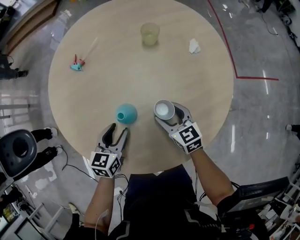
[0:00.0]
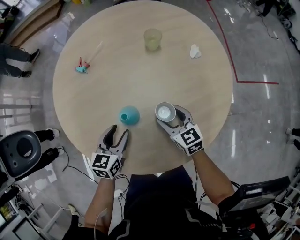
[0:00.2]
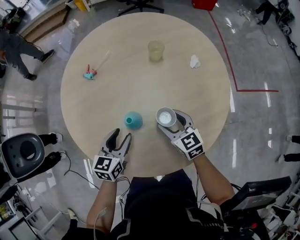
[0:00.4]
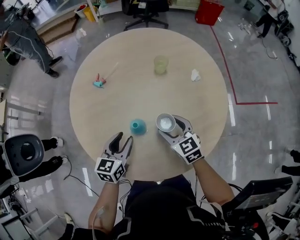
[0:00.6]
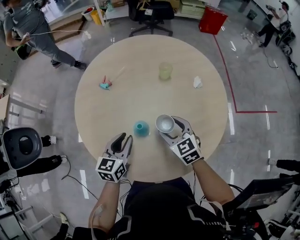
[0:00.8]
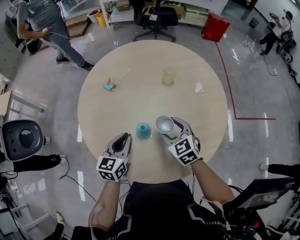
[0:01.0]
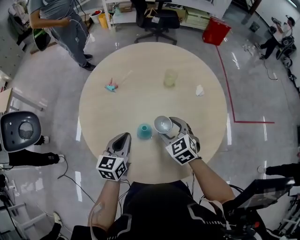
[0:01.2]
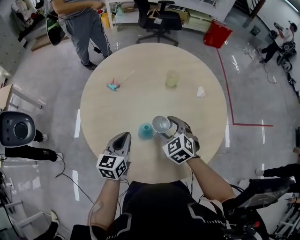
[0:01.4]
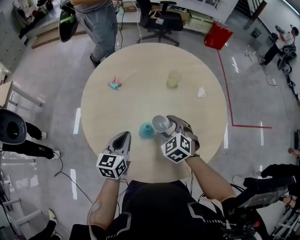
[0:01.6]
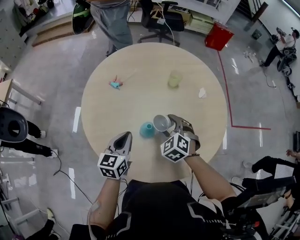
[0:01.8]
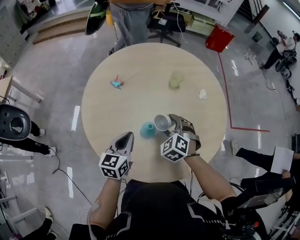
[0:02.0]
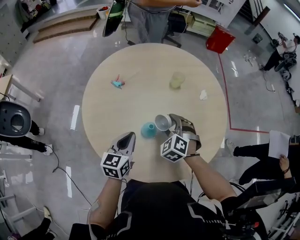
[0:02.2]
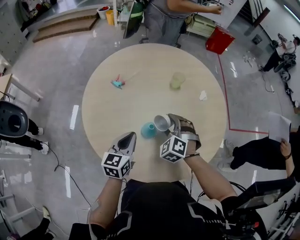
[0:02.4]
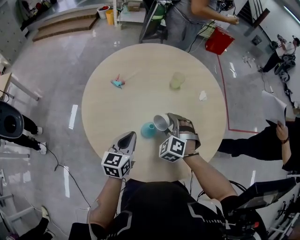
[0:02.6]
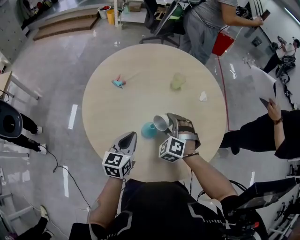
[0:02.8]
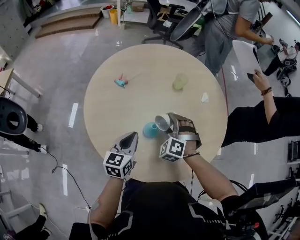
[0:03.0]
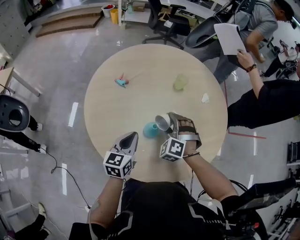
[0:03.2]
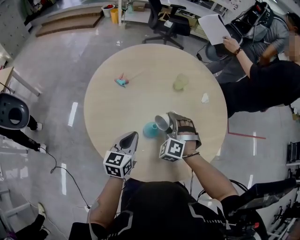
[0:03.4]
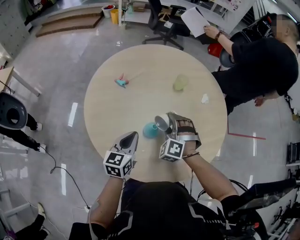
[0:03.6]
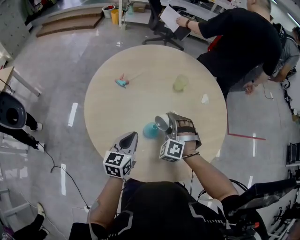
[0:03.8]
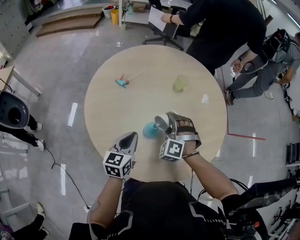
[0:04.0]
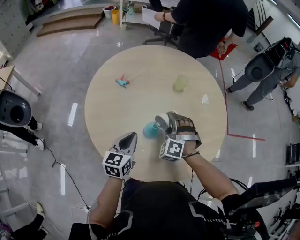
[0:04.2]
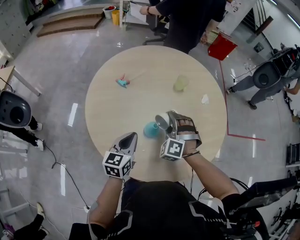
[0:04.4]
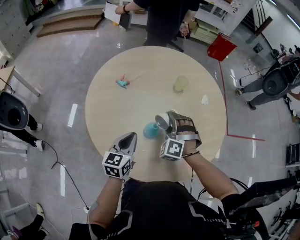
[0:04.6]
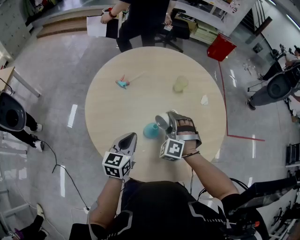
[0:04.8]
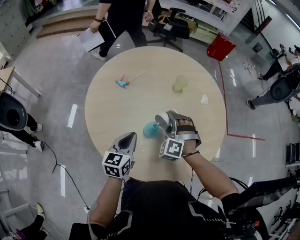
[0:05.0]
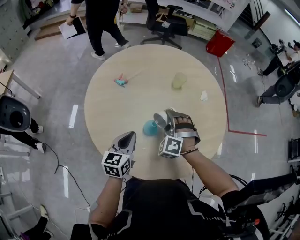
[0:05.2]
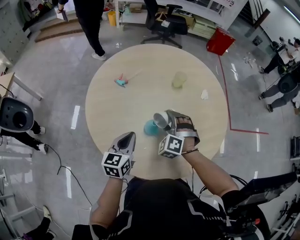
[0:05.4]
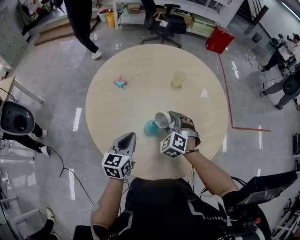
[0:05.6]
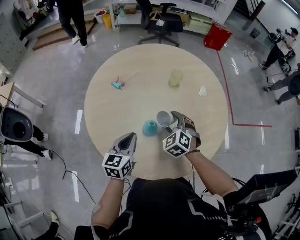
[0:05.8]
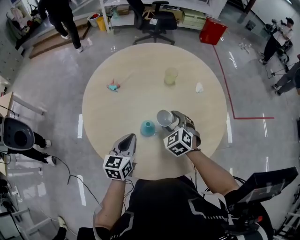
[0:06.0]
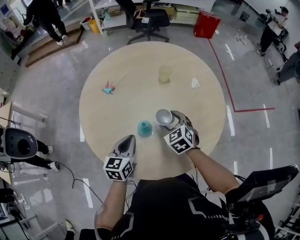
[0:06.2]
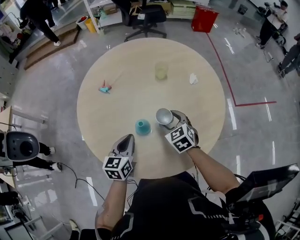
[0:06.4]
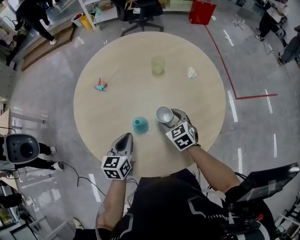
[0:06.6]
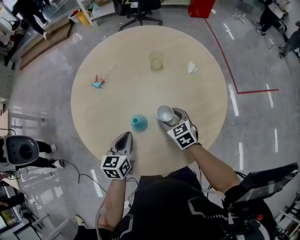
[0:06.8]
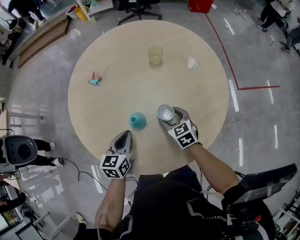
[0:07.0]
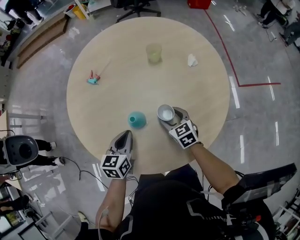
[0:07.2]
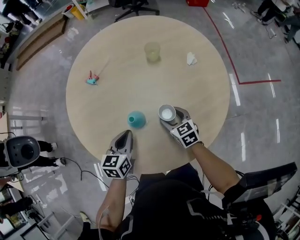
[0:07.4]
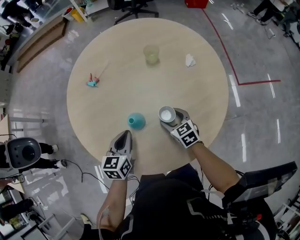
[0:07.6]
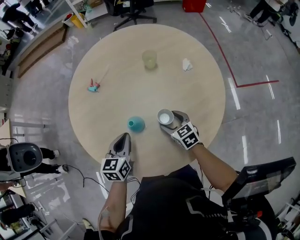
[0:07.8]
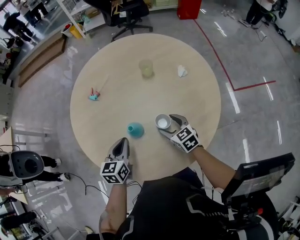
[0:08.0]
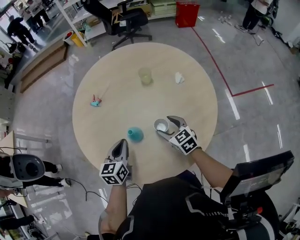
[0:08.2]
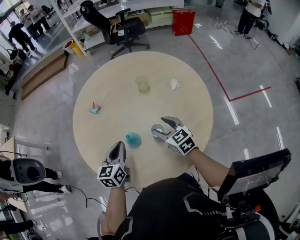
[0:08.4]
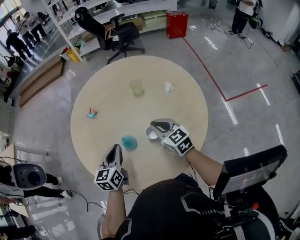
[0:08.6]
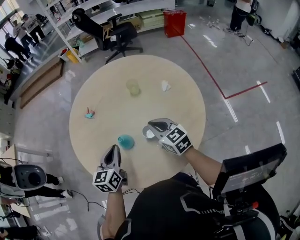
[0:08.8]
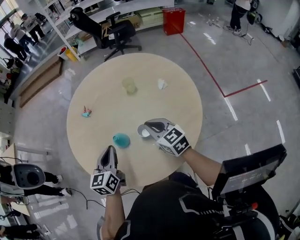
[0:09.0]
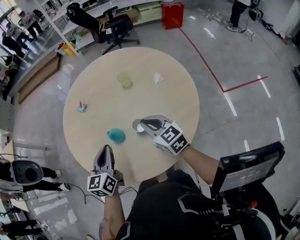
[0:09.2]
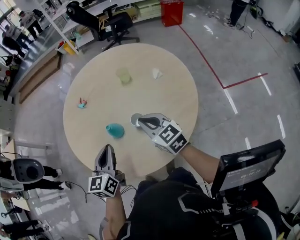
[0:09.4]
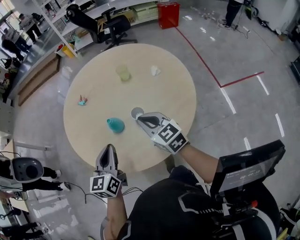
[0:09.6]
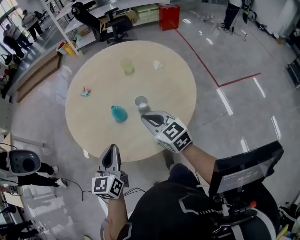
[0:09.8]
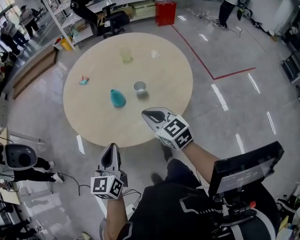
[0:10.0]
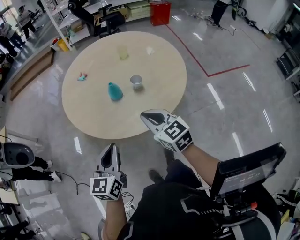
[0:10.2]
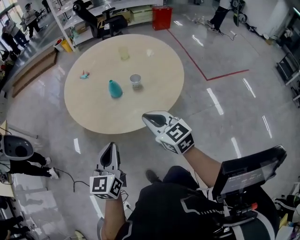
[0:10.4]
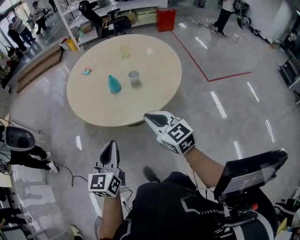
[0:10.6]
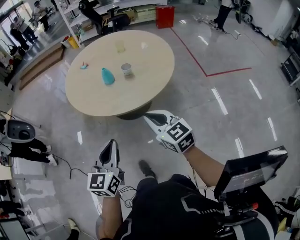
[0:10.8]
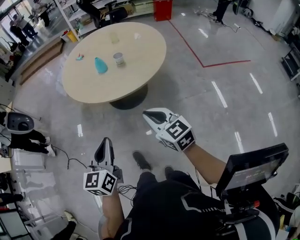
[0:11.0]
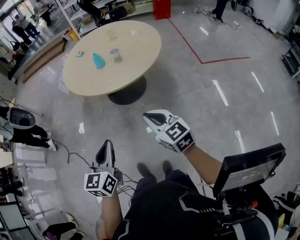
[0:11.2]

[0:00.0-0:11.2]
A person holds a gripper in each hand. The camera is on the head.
0:00.0 to 0:01.6: The grippers both shift upward and to the left by about 10 cm. The right gripper turns by approximately 40 degrees, while the left gripper closes.
0:01.6 to 0:03.2: The right gripper turns by about 30 degrees.
0:03.2 to 0:04.8: There are only small adjustments of the grippers.
0:04.8 to 0:06.4: The right gripper heads to the right, covering approximately 5 cm, and twists some 60 degrees clockwise, seen from behind.
0:08.0 to 0:09.6: The two grippers go some 15 cm upward and backward. The right gripper closes up.
0:09.6 to 0:11.2: Both grippers are carried backward, some 50 cm.

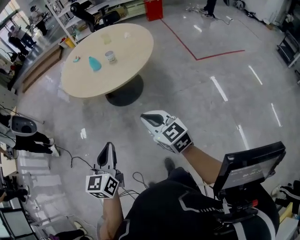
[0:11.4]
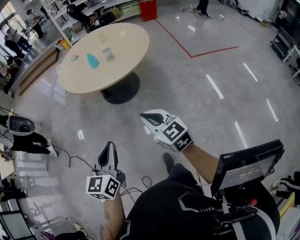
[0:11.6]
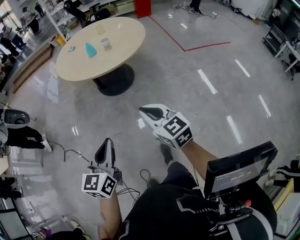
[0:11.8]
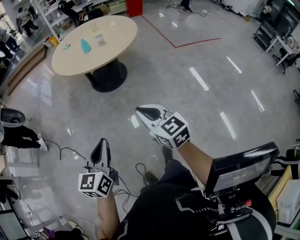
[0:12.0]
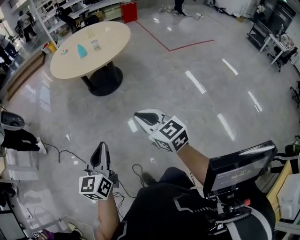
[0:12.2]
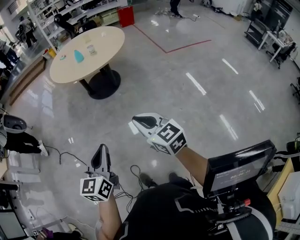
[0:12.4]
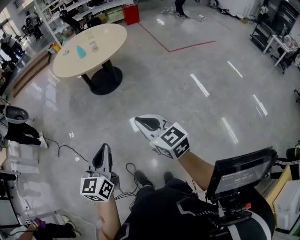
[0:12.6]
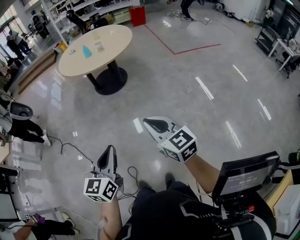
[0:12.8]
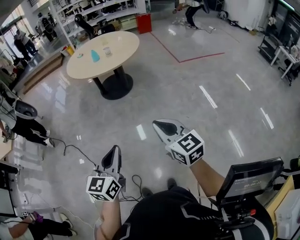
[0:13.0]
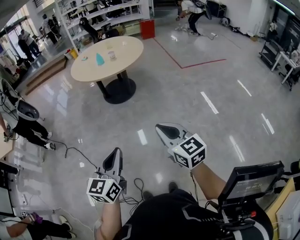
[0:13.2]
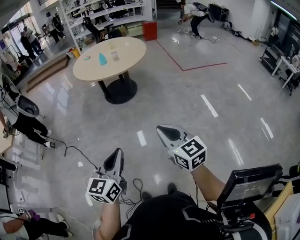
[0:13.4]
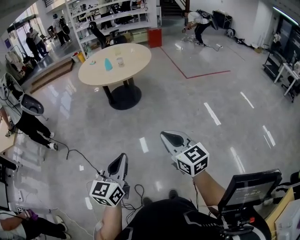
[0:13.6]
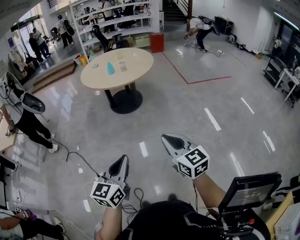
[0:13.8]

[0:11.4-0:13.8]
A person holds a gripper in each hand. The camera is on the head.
0:11.4 to 0:12.6: Both grippers move backward, roughly 35 cm.
0:12.6 to 0:13.8: The two grippers go approximately 5 cm backward.

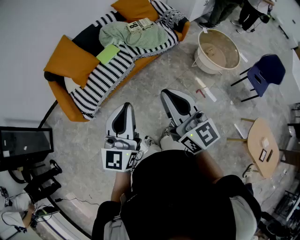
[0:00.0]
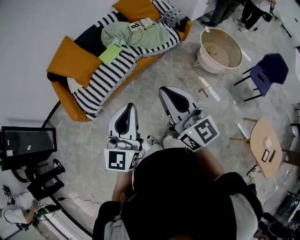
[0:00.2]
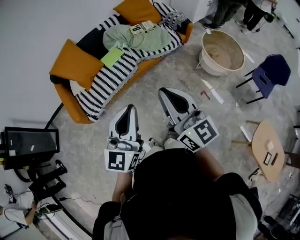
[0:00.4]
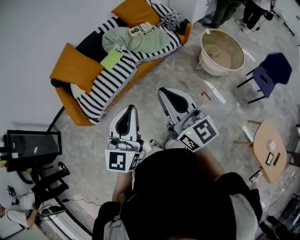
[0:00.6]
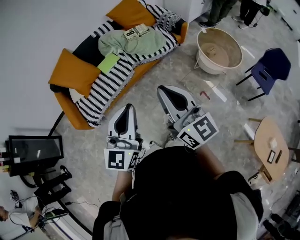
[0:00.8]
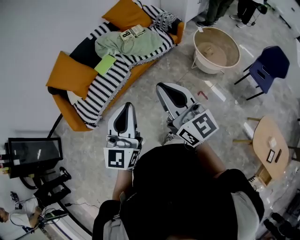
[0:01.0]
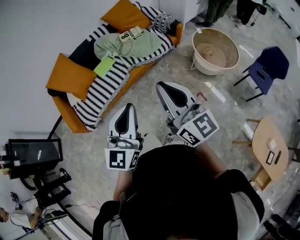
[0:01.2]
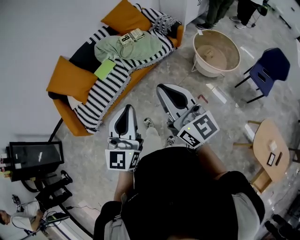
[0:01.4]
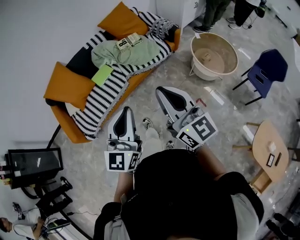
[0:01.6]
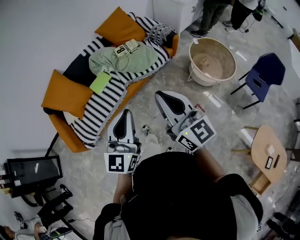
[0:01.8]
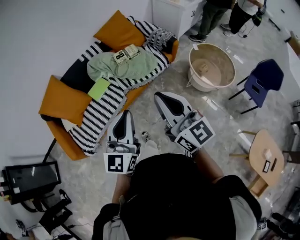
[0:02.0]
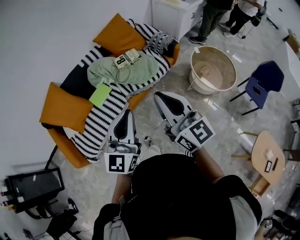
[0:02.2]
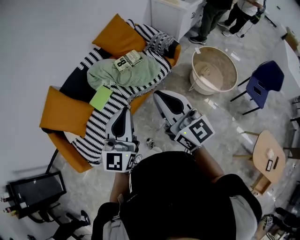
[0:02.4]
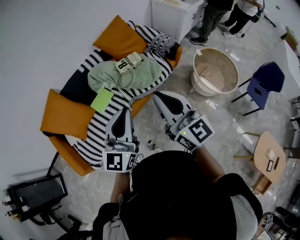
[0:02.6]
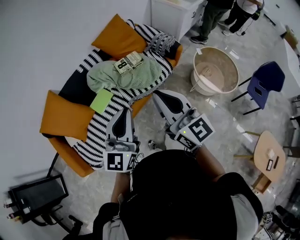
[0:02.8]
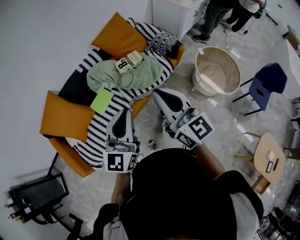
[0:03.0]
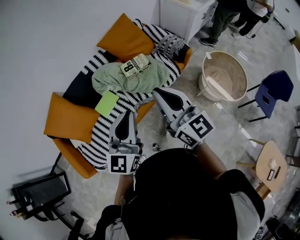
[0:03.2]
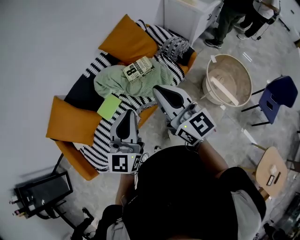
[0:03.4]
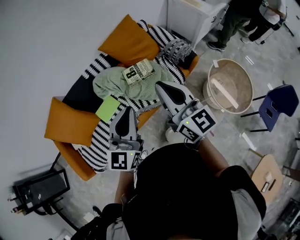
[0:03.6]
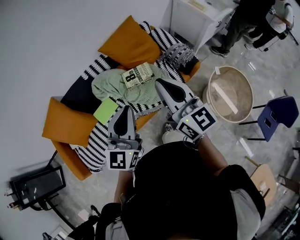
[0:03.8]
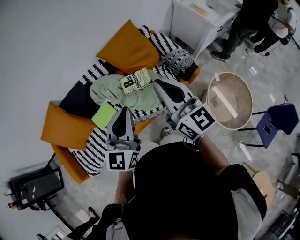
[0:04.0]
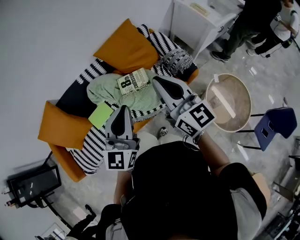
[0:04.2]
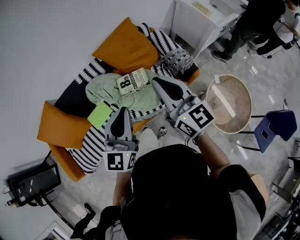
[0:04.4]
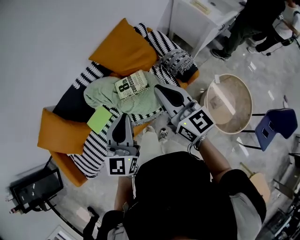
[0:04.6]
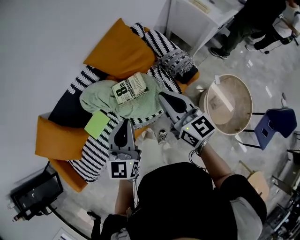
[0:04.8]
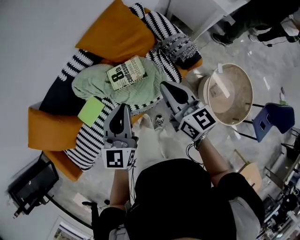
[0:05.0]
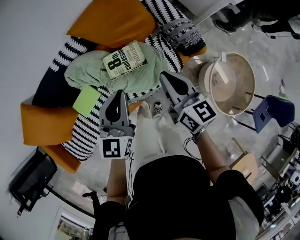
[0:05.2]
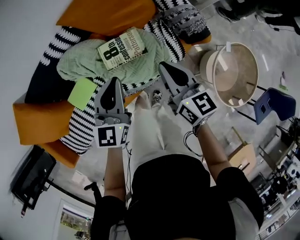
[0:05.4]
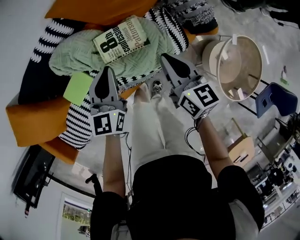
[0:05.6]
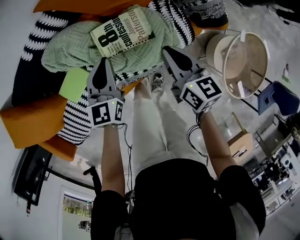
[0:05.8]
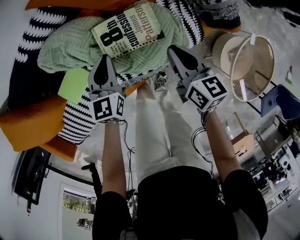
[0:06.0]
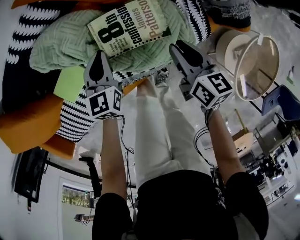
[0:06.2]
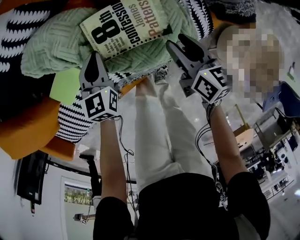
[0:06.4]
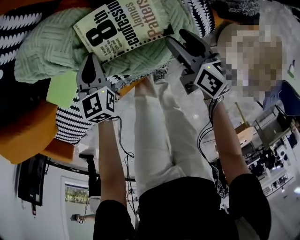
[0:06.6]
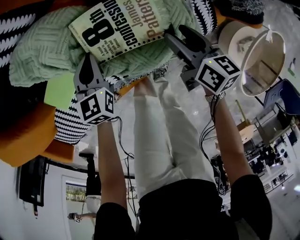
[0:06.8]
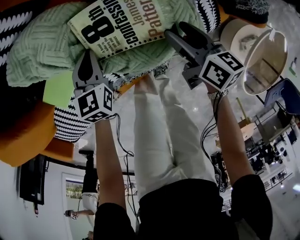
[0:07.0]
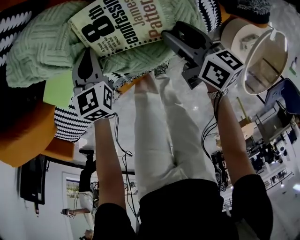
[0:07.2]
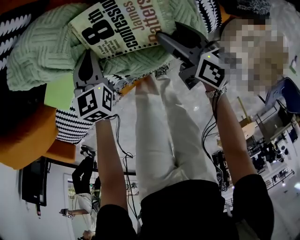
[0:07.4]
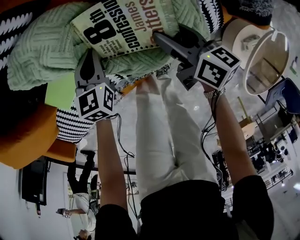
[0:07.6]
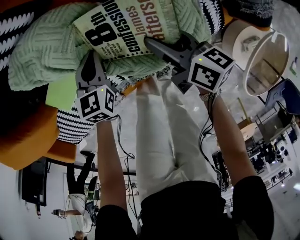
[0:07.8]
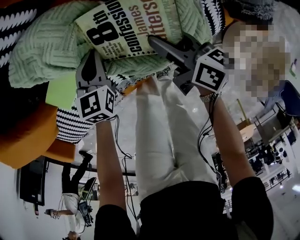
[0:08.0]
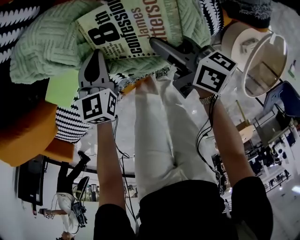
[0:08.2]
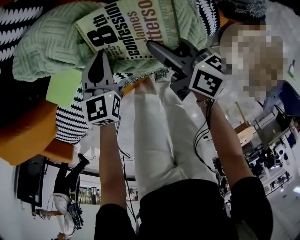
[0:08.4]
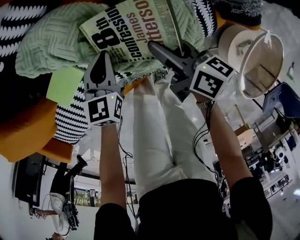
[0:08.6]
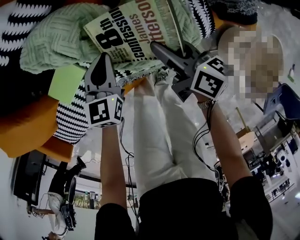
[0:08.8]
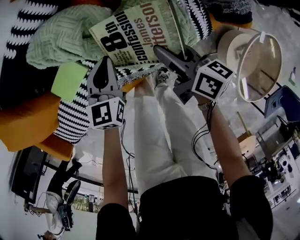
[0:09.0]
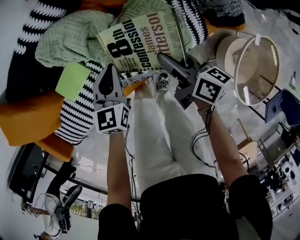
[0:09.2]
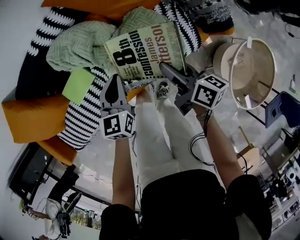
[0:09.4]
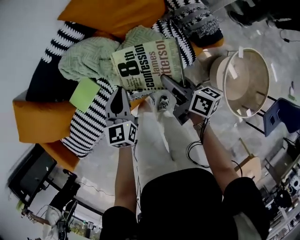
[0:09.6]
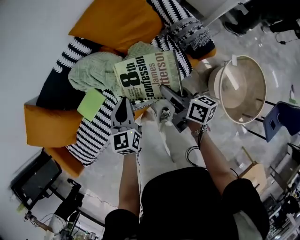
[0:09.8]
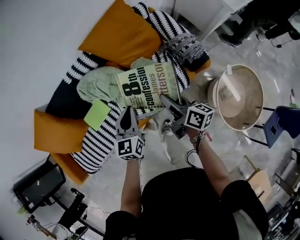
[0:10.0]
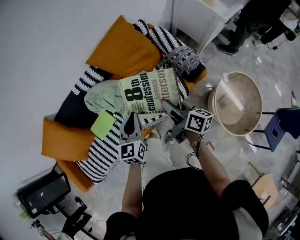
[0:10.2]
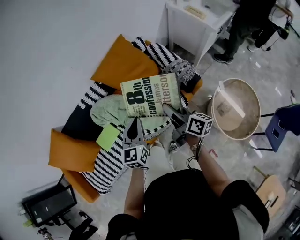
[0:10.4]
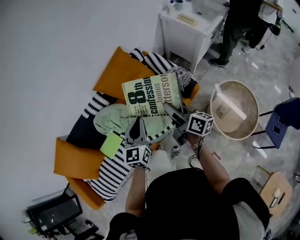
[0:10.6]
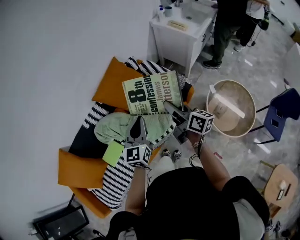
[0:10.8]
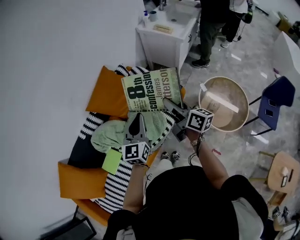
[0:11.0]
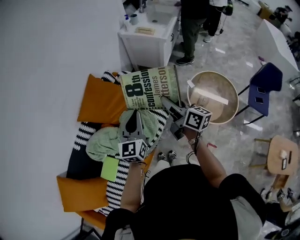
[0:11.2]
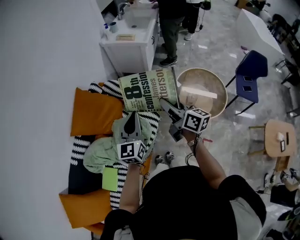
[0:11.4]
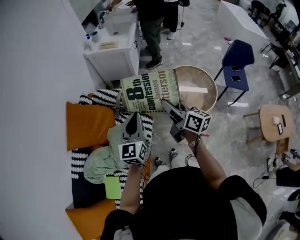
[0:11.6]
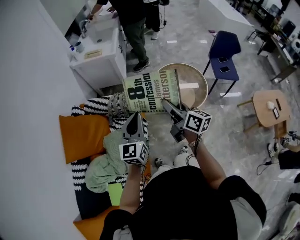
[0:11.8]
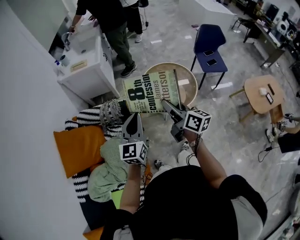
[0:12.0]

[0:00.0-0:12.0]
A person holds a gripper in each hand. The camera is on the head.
0:00.0 to 0:01.6: Both grippers move to the right and forward, roughly 15 cm.
0:01.6 to 0:03.0: Both grippers travel together forward, about 25 cm.
0:03.0 to 0:04.4: The grippers both shift forward and to the right by about 30 cm.
0:04.4 to 0:06.0: The right gripper moves downward, about 40 cm, and points its fingers roughly 40 degrees further downward, while the left gripper moves downward and forward, approximately 50 cm, and tips its fingers downward by about 30 degrees.
0:06.0 to 0:07.6: Both grippers move downward, about 15 cm. The right gripper swivels roughly 20 degrees, and opens its fingers.
0:07.6 to 0:09.0: The grippers both shift upward and backward by roughly 15 cm.
0:09.0 to 0:10.4: The two grippers go some 35 cm upward. The left gripper rotates roughly 20 degrees. Meanwhile the right gripper rotates about 30 degrees.
0:10.4 to 0:12.0: The left gripper changes place by some 30 cm, and swivels about 60 degrees; the right gripper changes place by about 35 cm, and rotates approximately 60 degrees.
